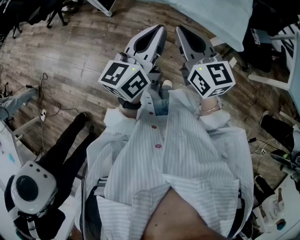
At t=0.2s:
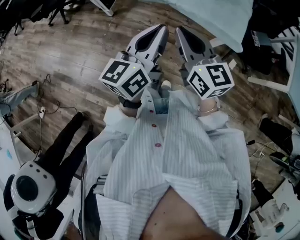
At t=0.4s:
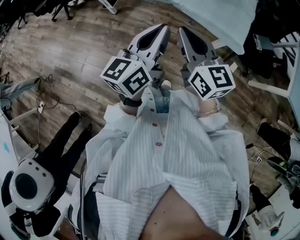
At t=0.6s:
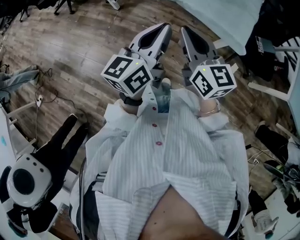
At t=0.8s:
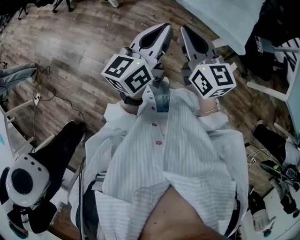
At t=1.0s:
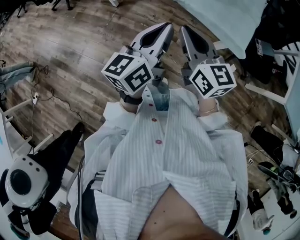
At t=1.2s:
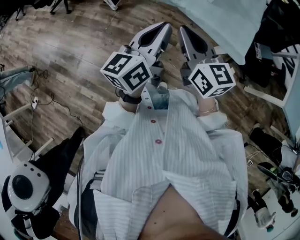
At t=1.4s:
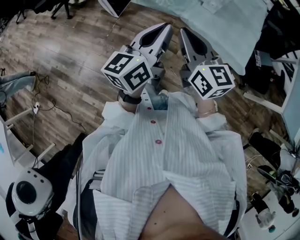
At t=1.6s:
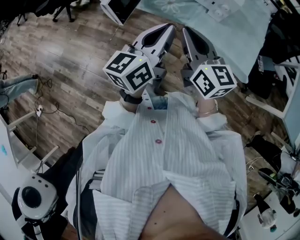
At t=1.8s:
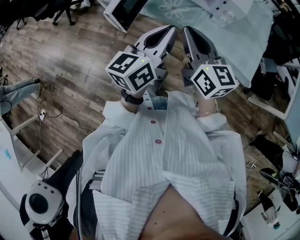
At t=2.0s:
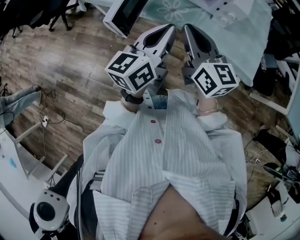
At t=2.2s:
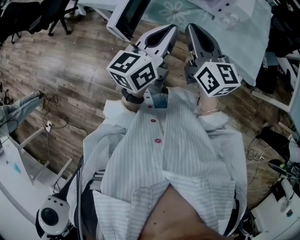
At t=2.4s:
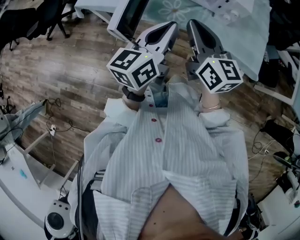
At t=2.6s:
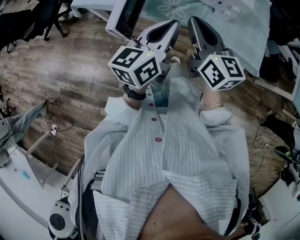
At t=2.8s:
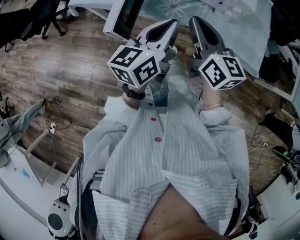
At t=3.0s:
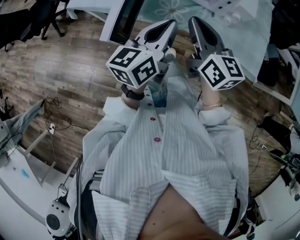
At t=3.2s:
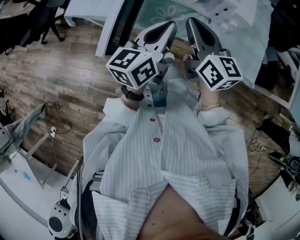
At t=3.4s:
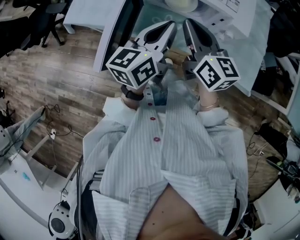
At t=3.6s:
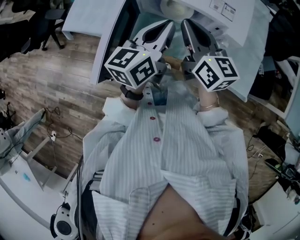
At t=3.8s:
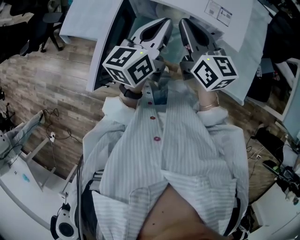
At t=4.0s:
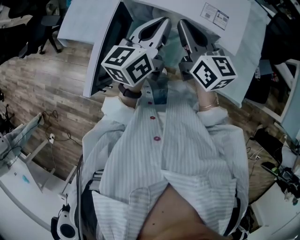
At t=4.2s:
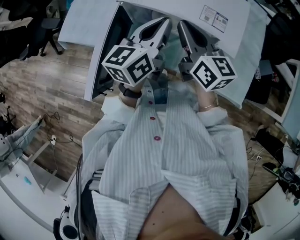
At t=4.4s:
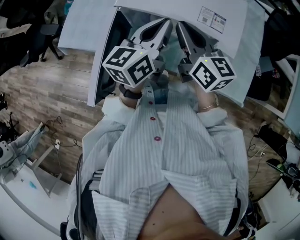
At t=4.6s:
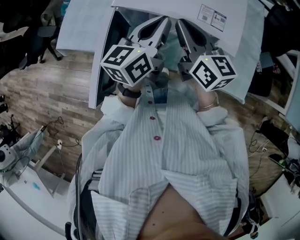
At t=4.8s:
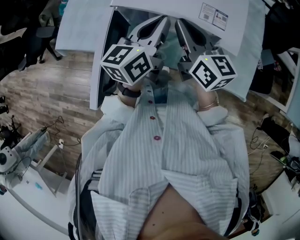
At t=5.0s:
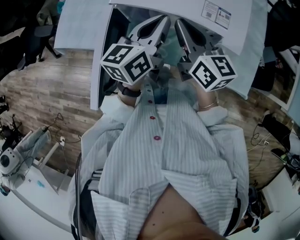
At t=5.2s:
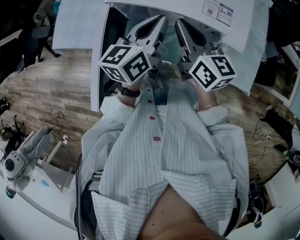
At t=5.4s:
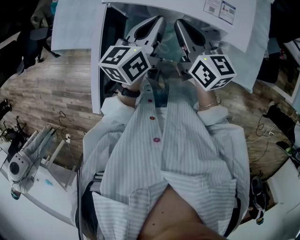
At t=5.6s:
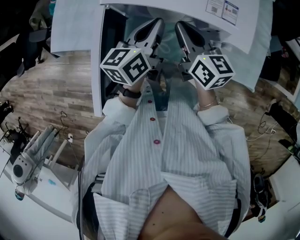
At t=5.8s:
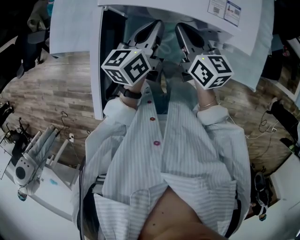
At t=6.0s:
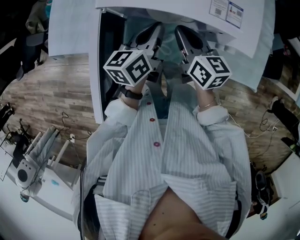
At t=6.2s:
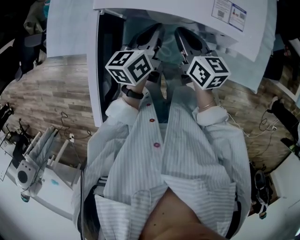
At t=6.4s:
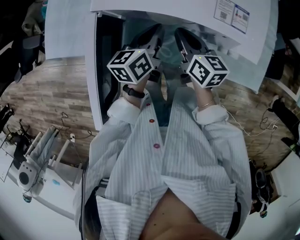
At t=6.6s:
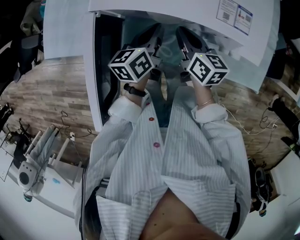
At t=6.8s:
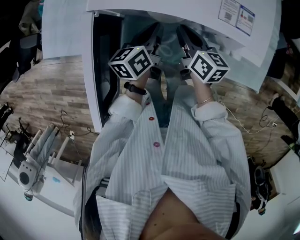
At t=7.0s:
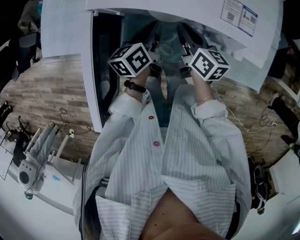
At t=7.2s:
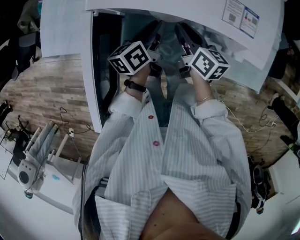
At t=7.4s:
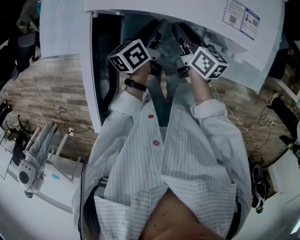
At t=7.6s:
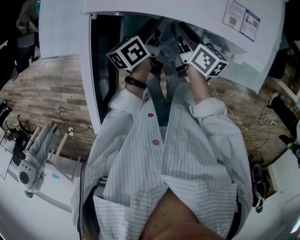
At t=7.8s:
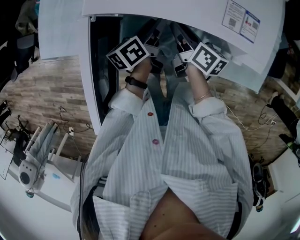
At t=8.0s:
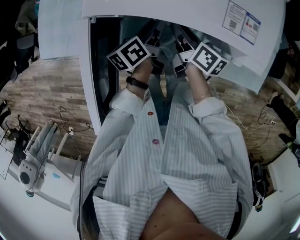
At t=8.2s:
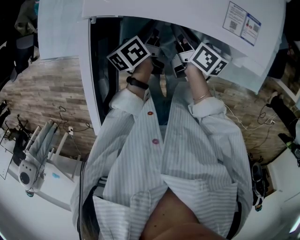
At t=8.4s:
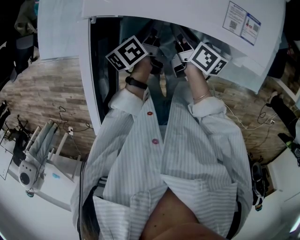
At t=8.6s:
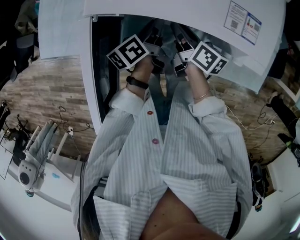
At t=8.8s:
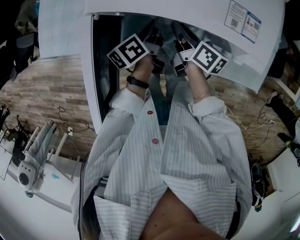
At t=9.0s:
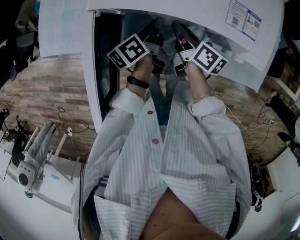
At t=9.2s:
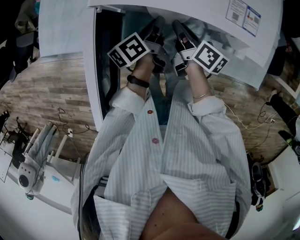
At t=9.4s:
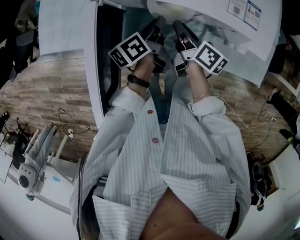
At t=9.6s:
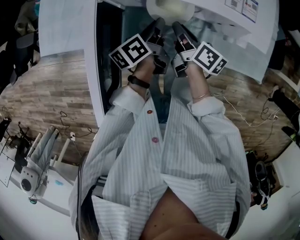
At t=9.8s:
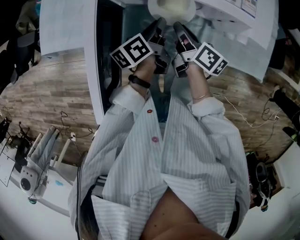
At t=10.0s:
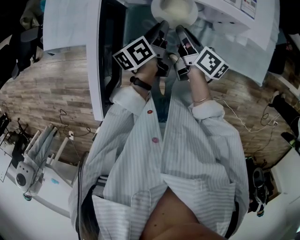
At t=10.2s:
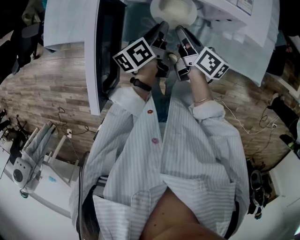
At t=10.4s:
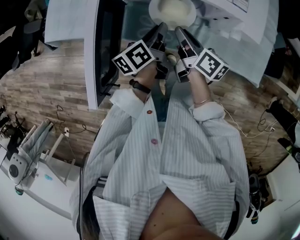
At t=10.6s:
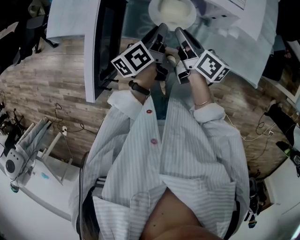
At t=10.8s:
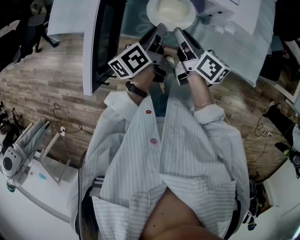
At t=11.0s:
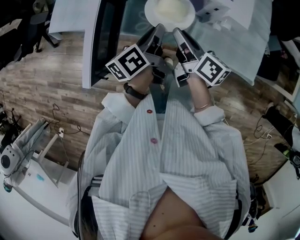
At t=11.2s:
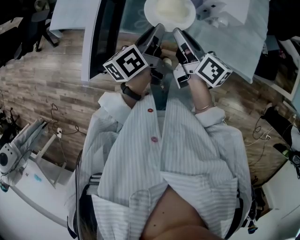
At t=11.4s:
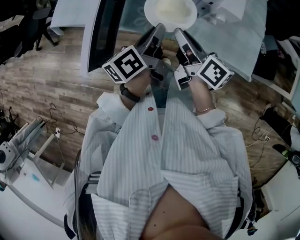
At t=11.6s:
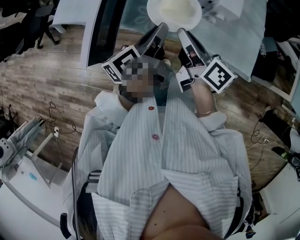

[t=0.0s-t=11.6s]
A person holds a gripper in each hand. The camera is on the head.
t=0.0s to t=1.4s: The two grippers go some 10 cm forward.
t=1.4s to t=2.8s: The left gripper goes roughly 20 cm forward and to the left. The right gripper shifts some 15 cm forward.
t=2.8s to t=4.4s: Both grippers travel together forward, approximately 25 cm.
t=4.4s to t=5.8s: Both grippers move downward, roughly 10 cm.
t=5.8s to t=7.2s: The two grippers go roughly 10 cm downward. The left gripper opens its fingers.
t=7.2s to t=8.8s: There are only small adjustments of the grippers.
t=8.8s to t=10.2s: Both grippers move backward, roughly 10 cm.
t=10.2s to t=11.6s: The grippers both shift upward and backward by some 20 cm.

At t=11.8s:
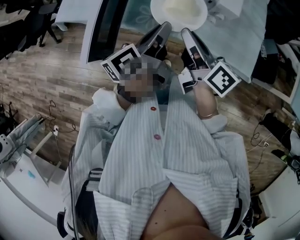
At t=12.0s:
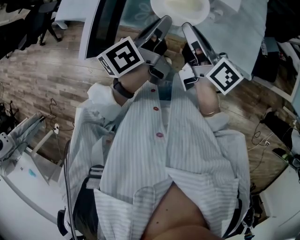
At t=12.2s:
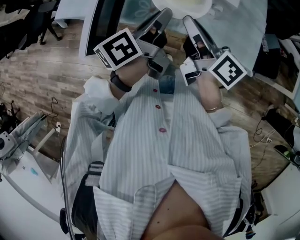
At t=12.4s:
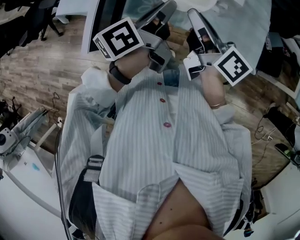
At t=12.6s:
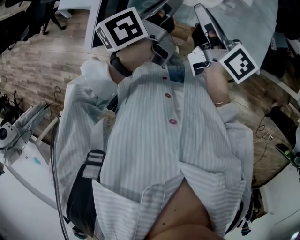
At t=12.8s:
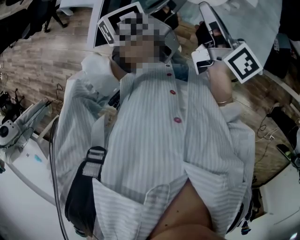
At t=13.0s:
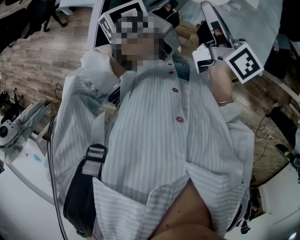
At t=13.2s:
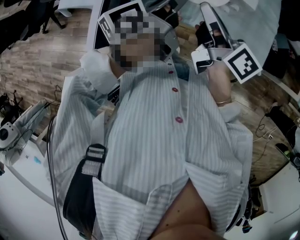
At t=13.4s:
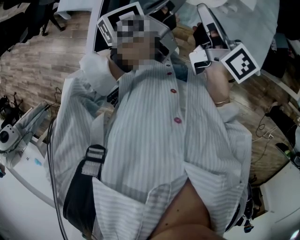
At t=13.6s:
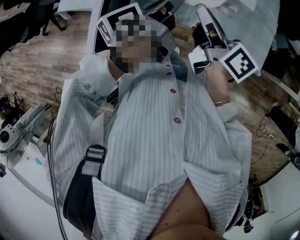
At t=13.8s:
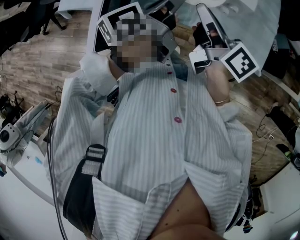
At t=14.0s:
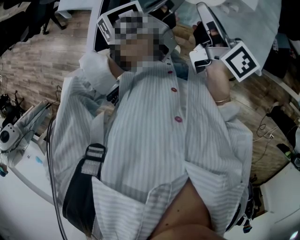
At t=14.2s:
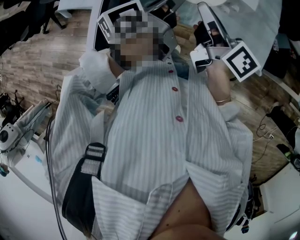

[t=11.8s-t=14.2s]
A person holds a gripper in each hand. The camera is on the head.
t=11.8s to t=13.0s: The left gripper ends up some 5 cm from where it was.
t=13.0s to t=14.2s: The grippers make only small movements.

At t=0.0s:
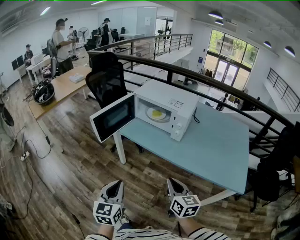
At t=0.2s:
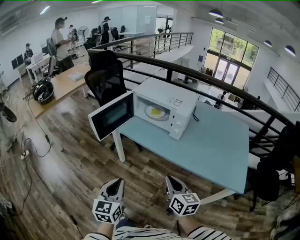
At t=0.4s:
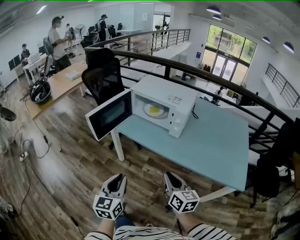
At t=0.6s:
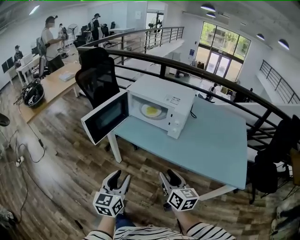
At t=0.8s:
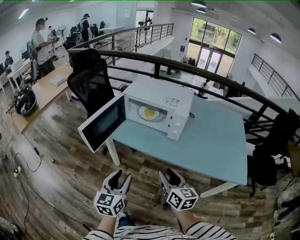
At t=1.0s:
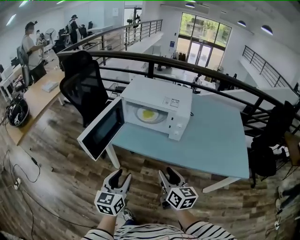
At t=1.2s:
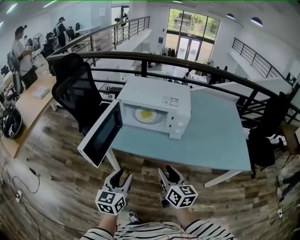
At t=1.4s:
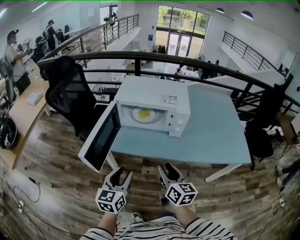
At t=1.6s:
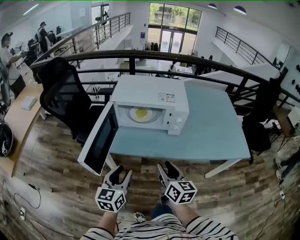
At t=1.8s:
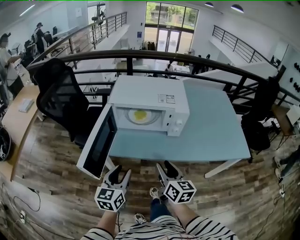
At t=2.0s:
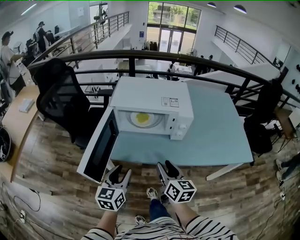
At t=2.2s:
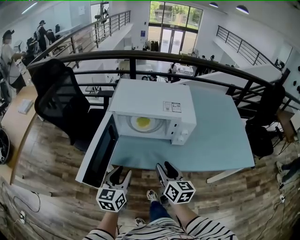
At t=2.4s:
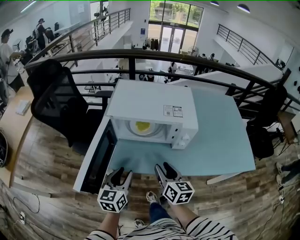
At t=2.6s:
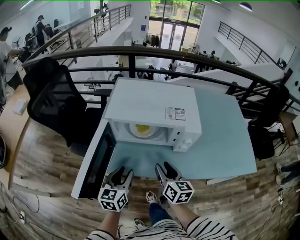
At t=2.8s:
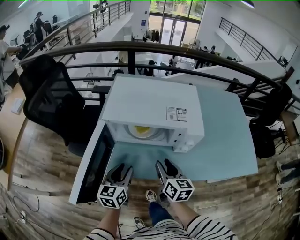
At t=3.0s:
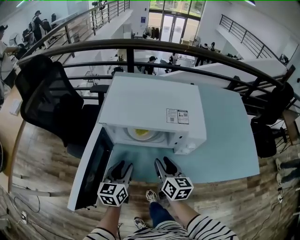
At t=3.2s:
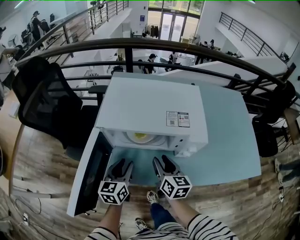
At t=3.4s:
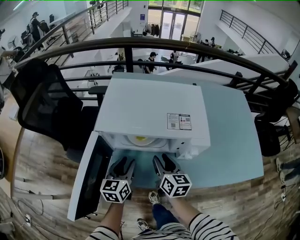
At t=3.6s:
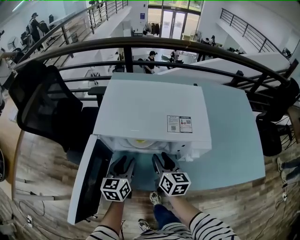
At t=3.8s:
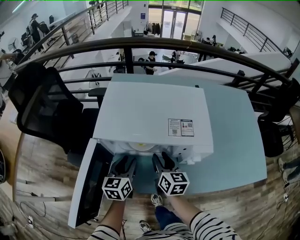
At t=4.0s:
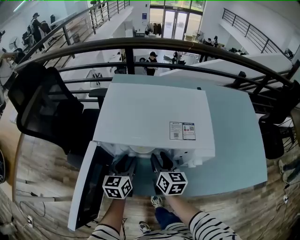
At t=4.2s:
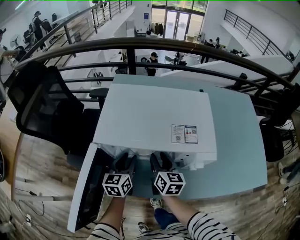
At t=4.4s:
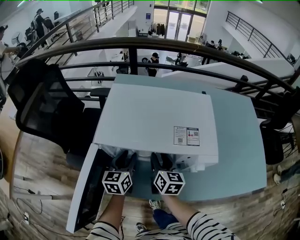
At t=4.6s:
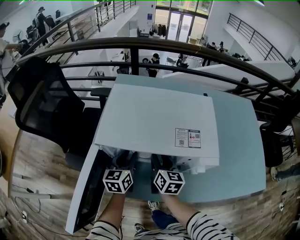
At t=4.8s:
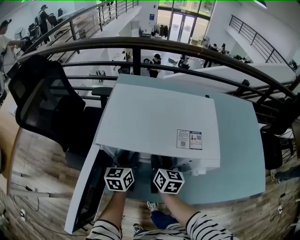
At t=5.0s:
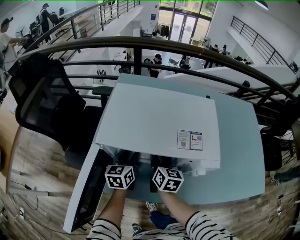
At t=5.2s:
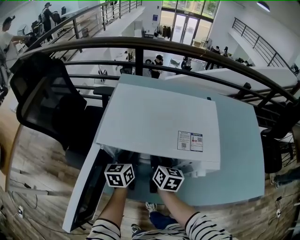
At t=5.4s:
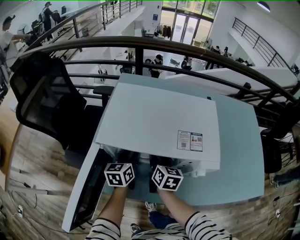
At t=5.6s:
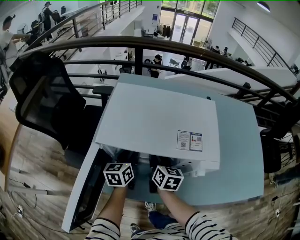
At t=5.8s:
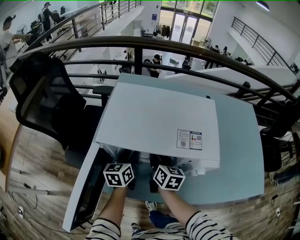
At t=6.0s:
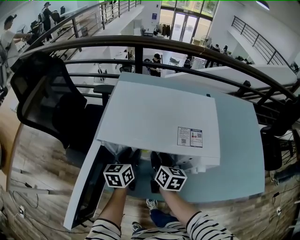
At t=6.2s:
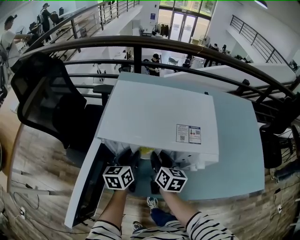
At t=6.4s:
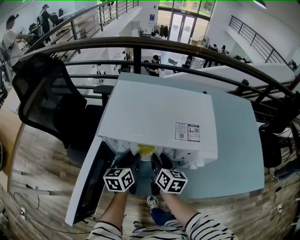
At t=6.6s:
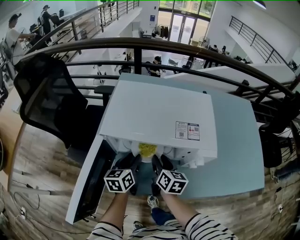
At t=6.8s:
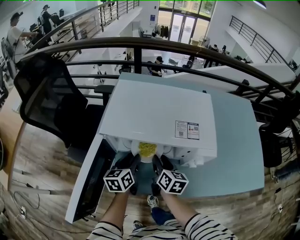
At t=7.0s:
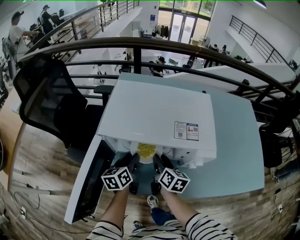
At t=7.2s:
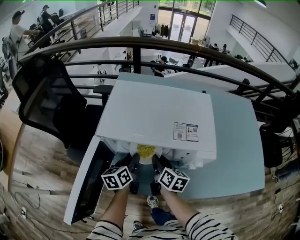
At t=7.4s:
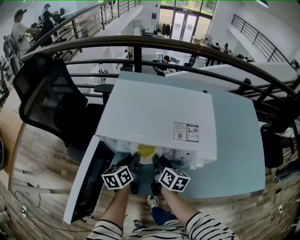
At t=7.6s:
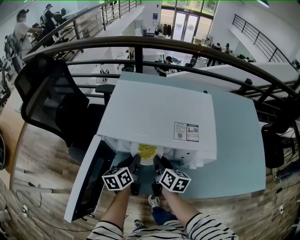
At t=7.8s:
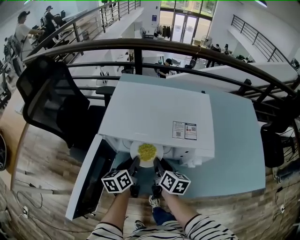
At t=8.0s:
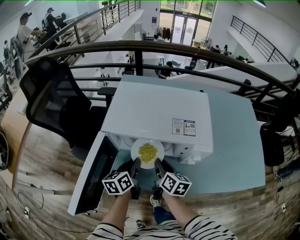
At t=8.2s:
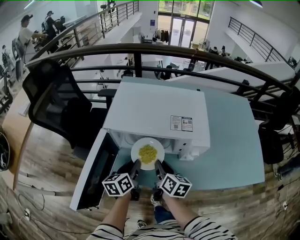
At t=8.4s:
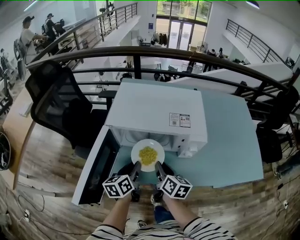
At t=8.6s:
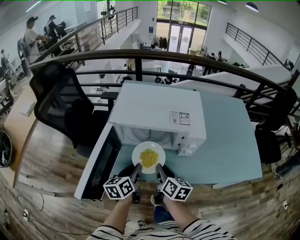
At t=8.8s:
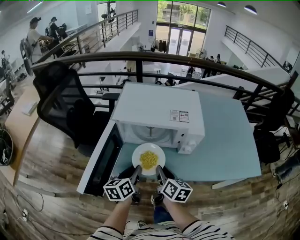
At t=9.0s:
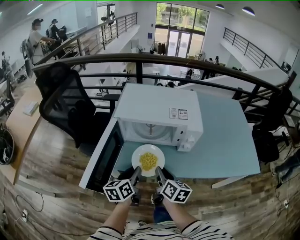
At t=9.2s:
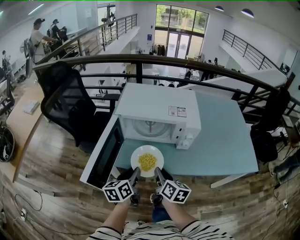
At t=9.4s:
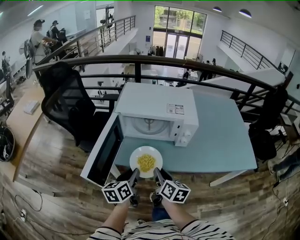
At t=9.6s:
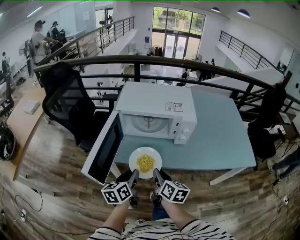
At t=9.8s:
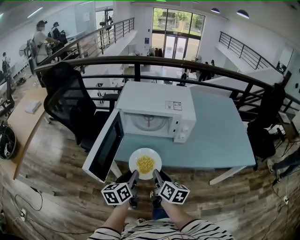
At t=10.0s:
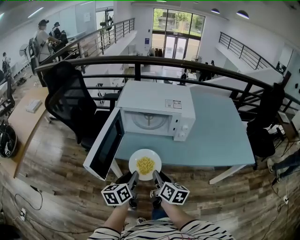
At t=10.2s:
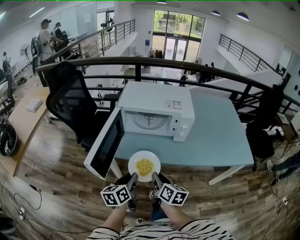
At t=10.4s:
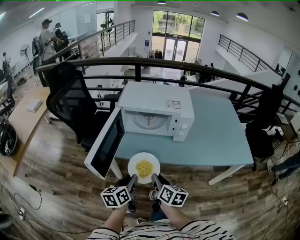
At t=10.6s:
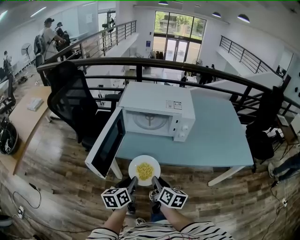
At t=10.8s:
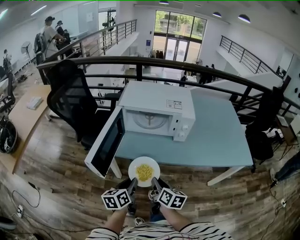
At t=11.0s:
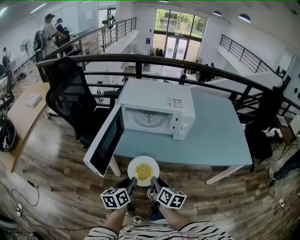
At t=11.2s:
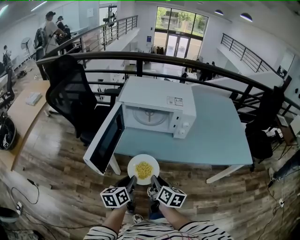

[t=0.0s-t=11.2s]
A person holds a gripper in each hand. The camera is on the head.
t=0.0s to t=1.6s: The left gripper ends up some 25 cm from where it was, turns by about 30 degrees, and opens up. Meanwhile the right gripper changes place by roughly 20 cm, turns by about 30 degrees, and opens up.
t=1.6s to t=3.2s: The grippers both shift forward by approximately 25 cm.
t=3.2s to t=4.8s: The grippers both shift forward by about 10 cm.
t=4.8s to t=6.4s: There are only small adjustments of the grippers.
t=6.4s to t=8.0s: The left gripper travels backward by some 5 cm. The right gripper ends up some 5 cm from where it was.
t=8.0s to t=9.6s: The grippers both shift backward by some 20 cm.
t=9.6s to t=11.2s: The grippers both shift backward by roughly 10 cm.
